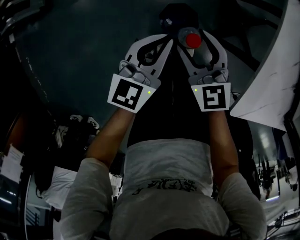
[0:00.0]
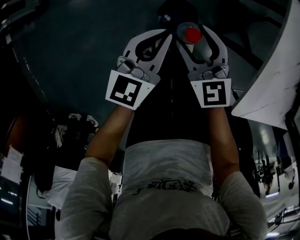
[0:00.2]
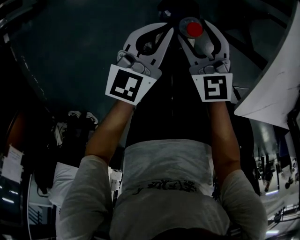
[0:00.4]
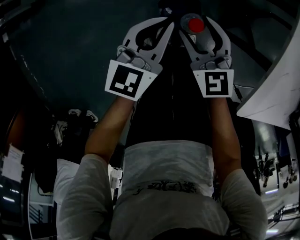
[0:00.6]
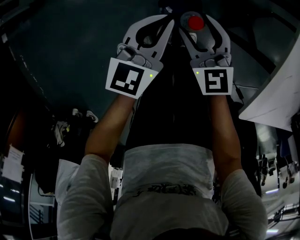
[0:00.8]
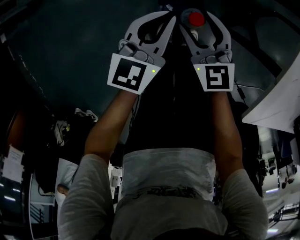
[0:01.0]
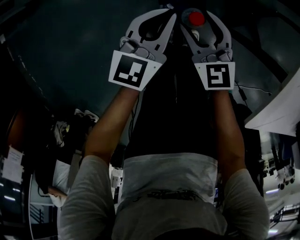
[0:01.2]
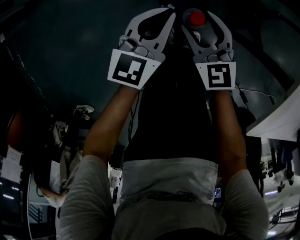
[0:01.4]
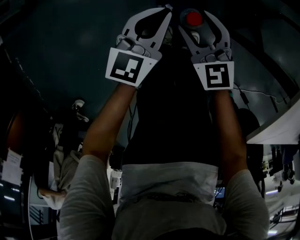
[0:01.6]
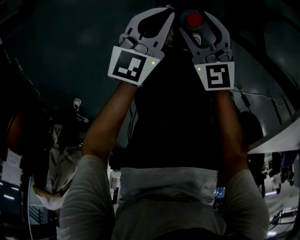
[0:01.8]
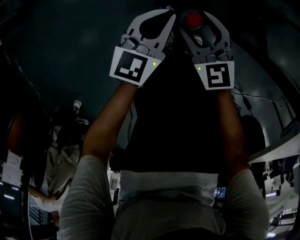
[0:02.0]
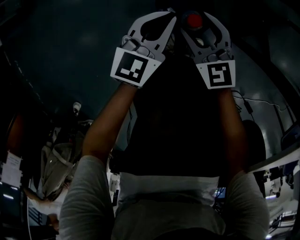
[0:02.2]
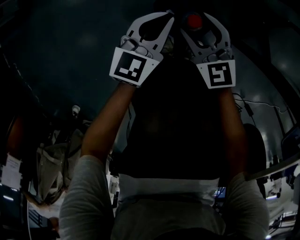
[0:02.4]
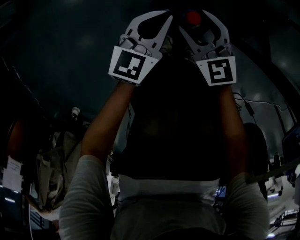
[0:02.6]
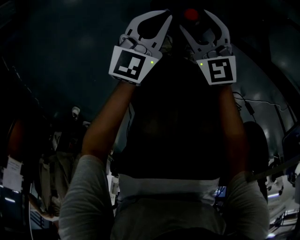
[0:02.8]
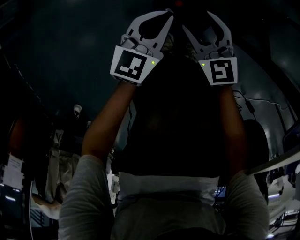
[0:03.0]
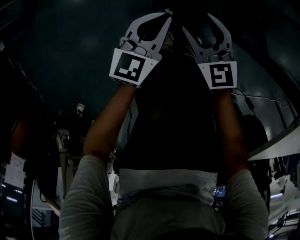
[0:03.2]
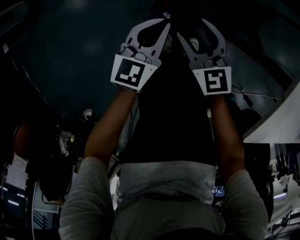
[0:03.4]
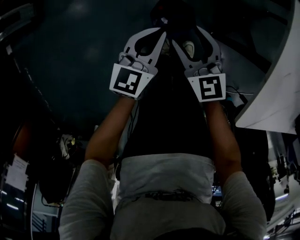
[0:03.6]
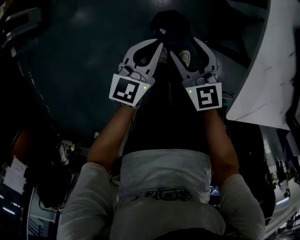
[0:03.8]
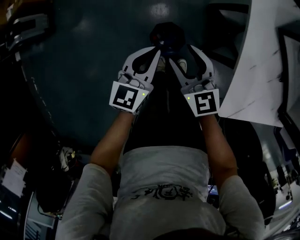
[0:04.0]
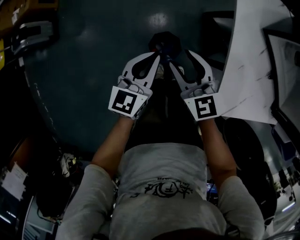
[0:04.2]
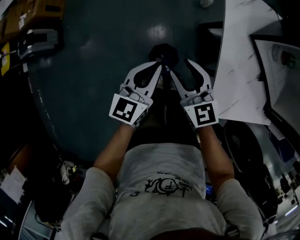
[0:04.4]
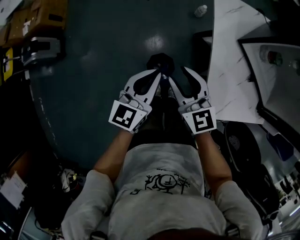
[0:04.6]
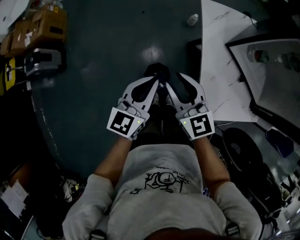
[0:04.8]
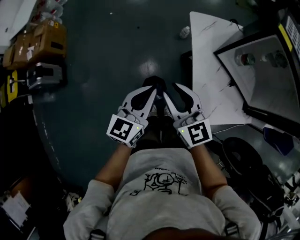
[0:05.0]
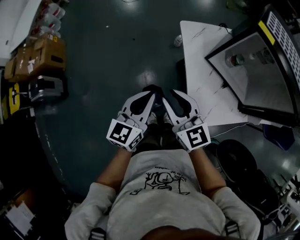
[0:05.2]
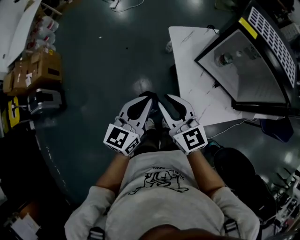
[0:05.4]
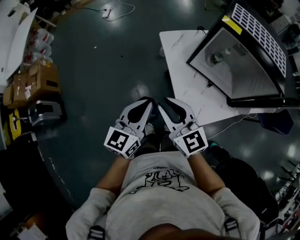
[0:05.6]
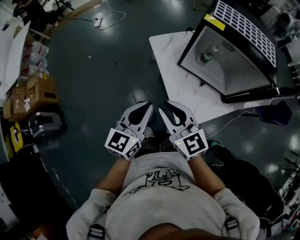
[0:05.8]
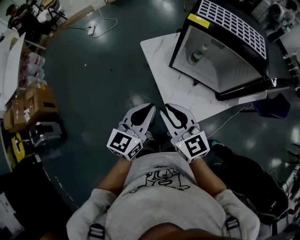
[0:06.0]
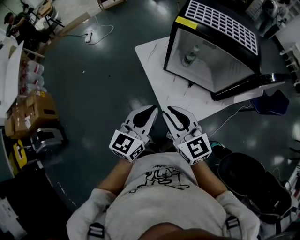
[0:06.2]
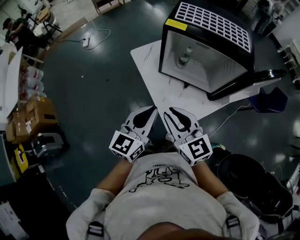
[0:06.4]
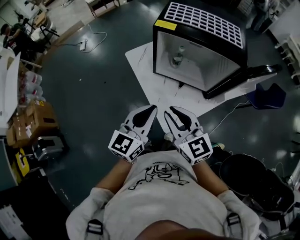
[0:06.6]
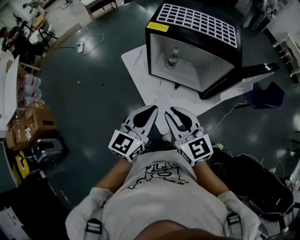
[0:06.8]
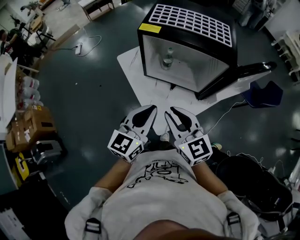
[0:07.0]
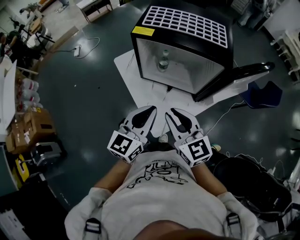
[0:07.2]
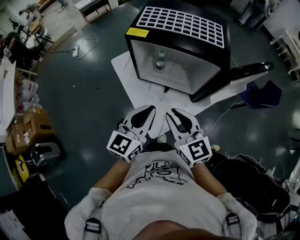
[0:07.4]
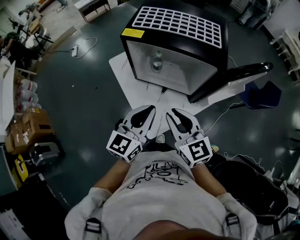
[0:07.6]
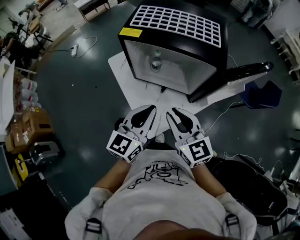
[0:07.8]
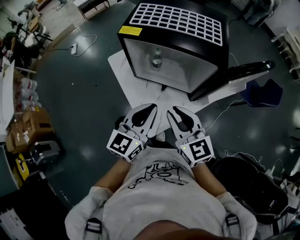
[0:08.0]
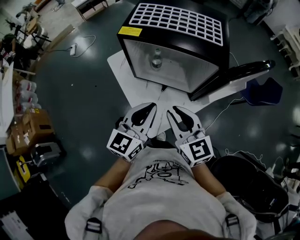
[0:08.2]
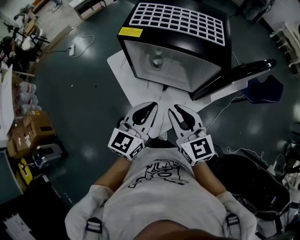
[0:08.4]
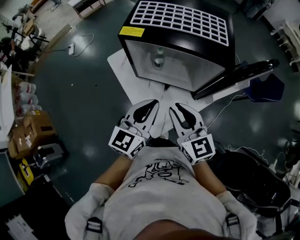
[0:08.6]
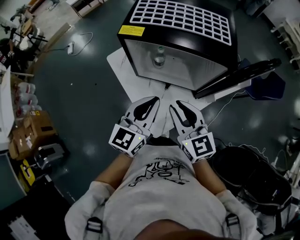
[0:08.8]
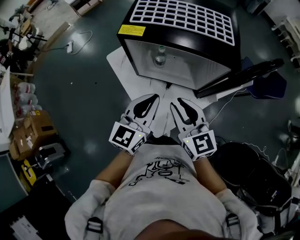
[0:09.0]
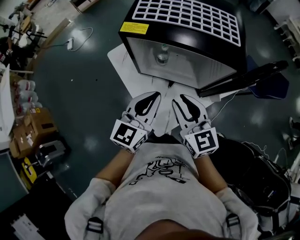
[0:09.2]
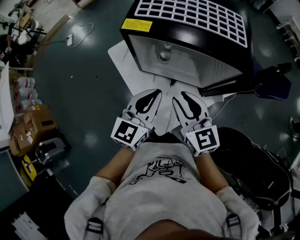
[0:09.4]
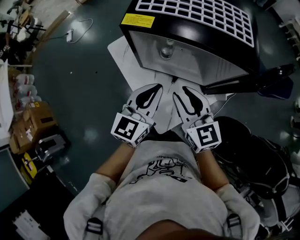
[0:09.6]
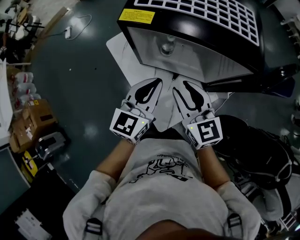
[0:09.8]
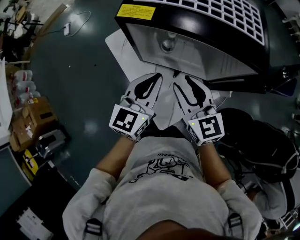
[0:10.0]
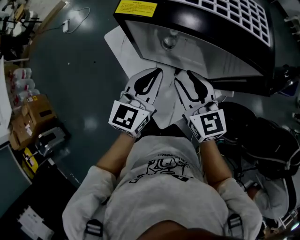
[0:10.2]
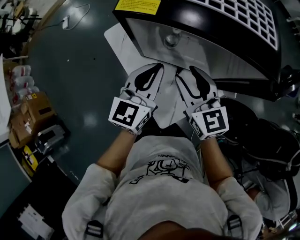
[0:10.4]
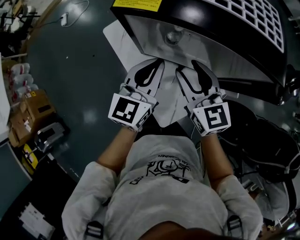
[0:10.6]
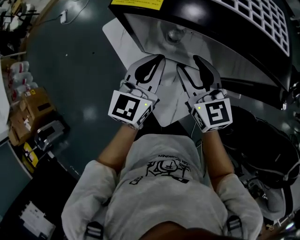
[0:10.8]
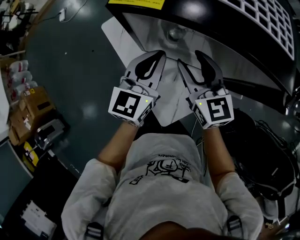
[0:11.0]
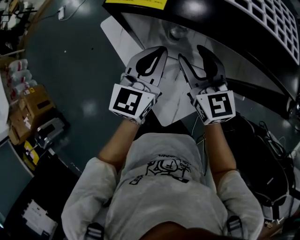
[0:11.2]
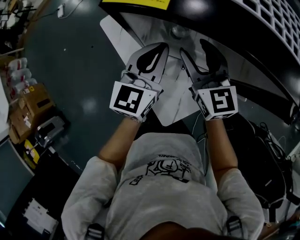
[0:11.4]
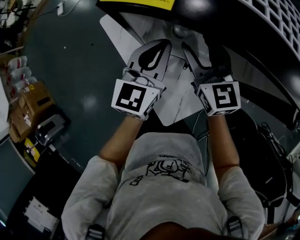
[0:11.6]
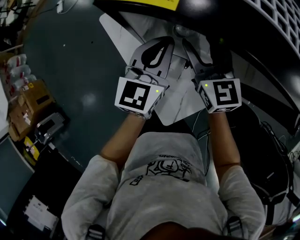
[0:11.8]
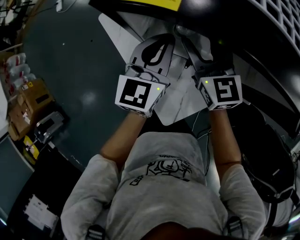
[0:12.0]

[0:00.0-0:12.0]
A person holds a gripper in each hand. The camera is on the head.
0:00.0 to 0:01.6: Both grippers move downward, some 20 cm.
0:01.6 to 0:03.0: Both grippers move downward, roughly 10 cm.
0:03.0 to 0:04.4: The grippers both shift upward by roughly 40 cm.
0:04.4 to 0:06.0: Both grippers travel together upward and to the right, roughly 30 cm. The right gripper closes its fingers. Meanwhile the left gripper rotates about 30 degrees.
0:06.0 to 0:07.6: Both grippers travel together to the right, roughly 20 cm.
0:07.6 to 0:09.0: Both grippers move forward, roughly 5 cm.
0:09.0 to 0:10.4: The grippers both shift forward and downward by roughly 10 cm.
0:10.4 to 0:12.0: Both grippers move forward and downward, approximately 15 cm.

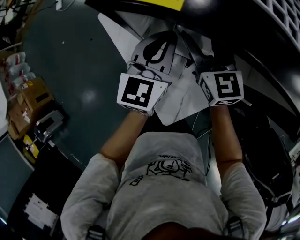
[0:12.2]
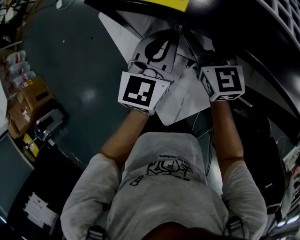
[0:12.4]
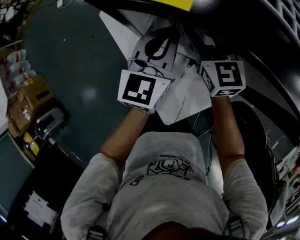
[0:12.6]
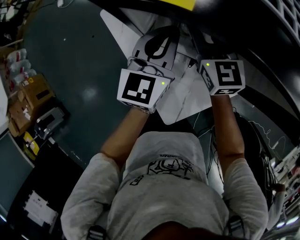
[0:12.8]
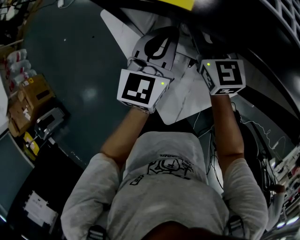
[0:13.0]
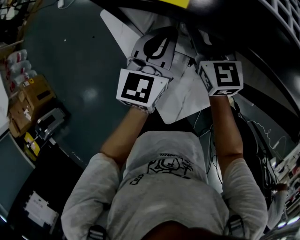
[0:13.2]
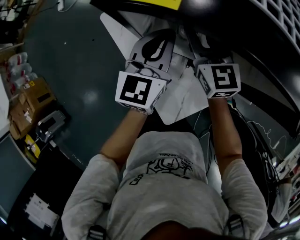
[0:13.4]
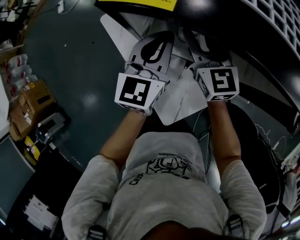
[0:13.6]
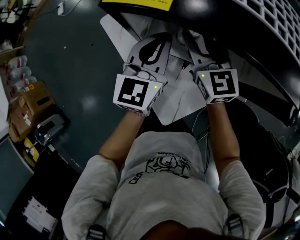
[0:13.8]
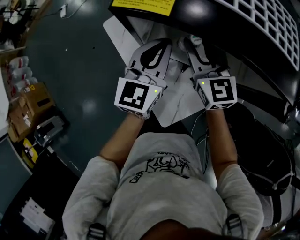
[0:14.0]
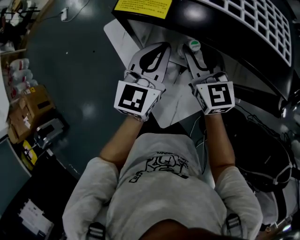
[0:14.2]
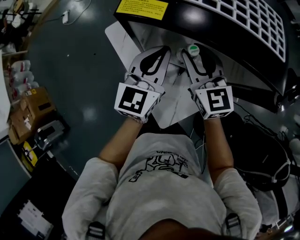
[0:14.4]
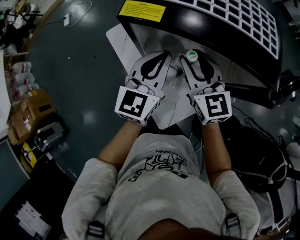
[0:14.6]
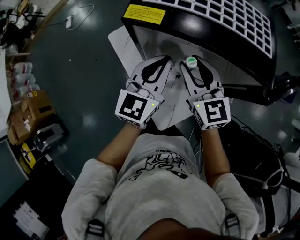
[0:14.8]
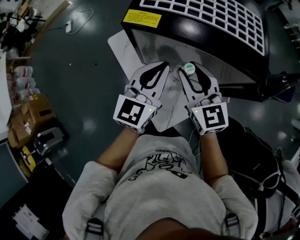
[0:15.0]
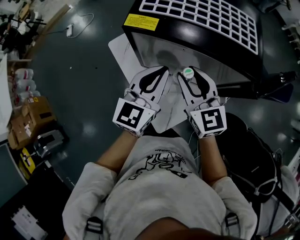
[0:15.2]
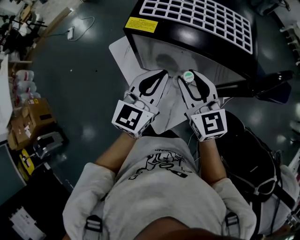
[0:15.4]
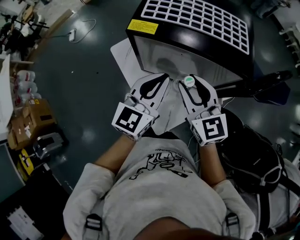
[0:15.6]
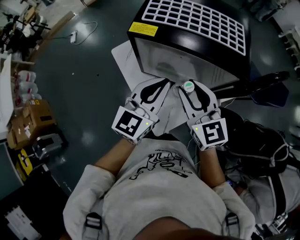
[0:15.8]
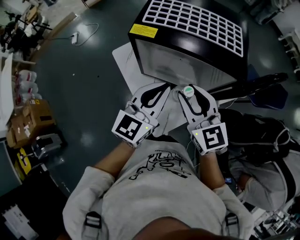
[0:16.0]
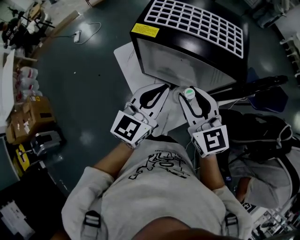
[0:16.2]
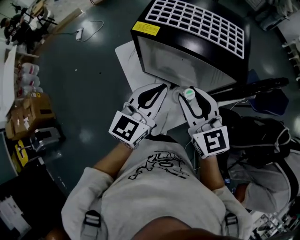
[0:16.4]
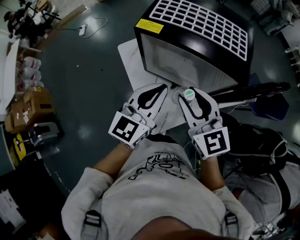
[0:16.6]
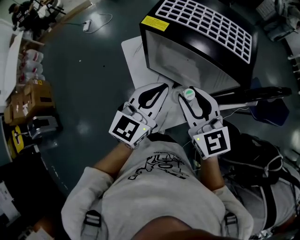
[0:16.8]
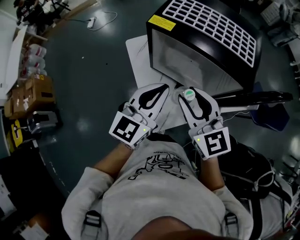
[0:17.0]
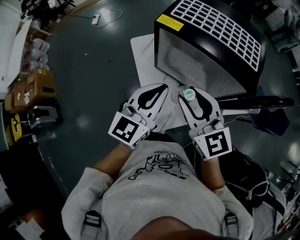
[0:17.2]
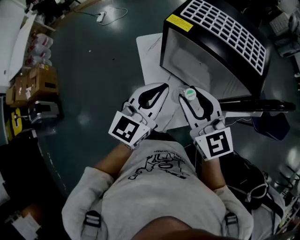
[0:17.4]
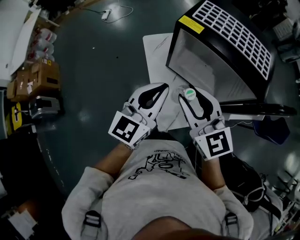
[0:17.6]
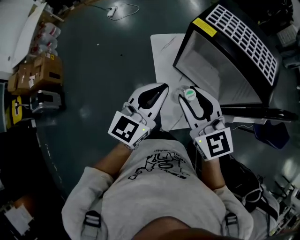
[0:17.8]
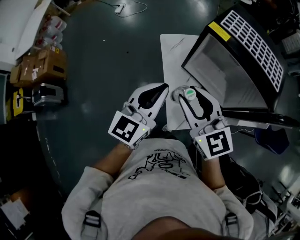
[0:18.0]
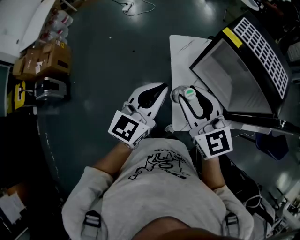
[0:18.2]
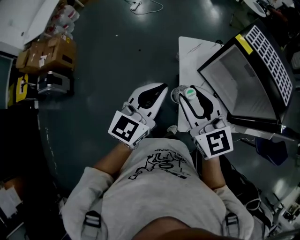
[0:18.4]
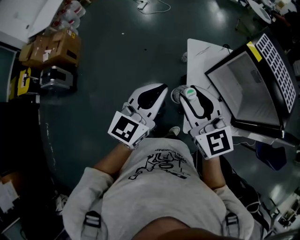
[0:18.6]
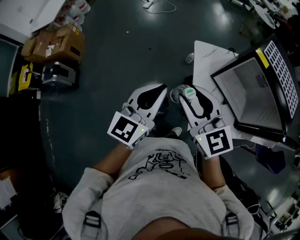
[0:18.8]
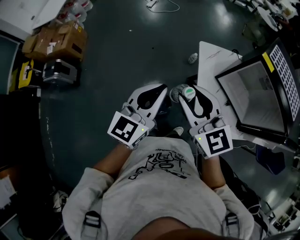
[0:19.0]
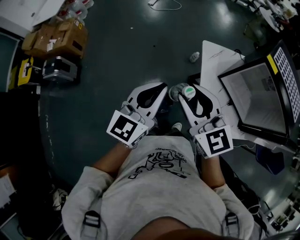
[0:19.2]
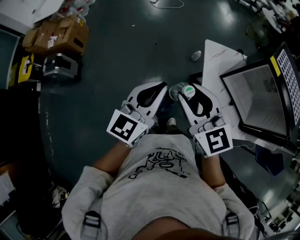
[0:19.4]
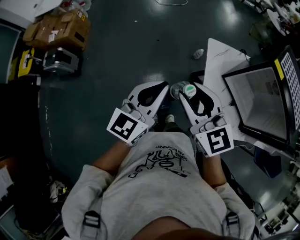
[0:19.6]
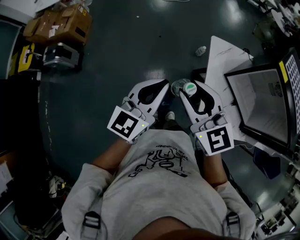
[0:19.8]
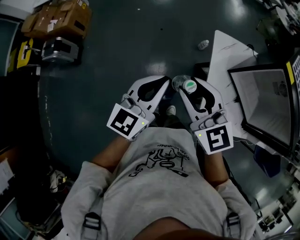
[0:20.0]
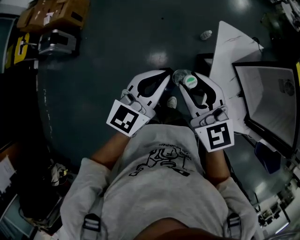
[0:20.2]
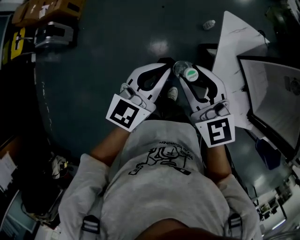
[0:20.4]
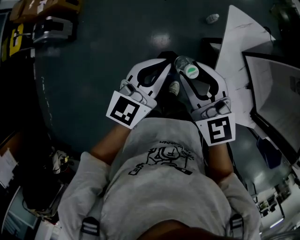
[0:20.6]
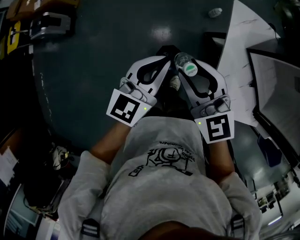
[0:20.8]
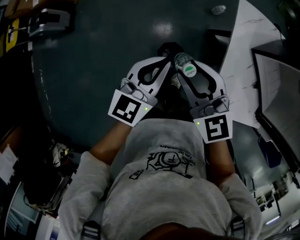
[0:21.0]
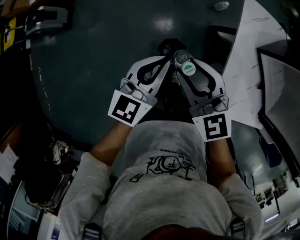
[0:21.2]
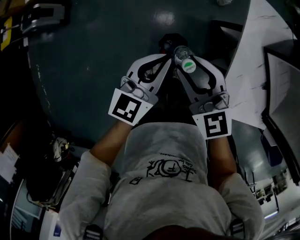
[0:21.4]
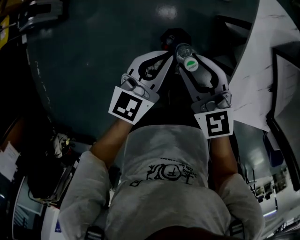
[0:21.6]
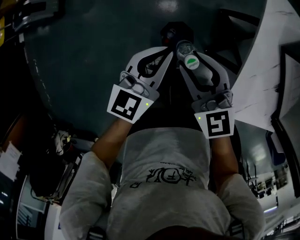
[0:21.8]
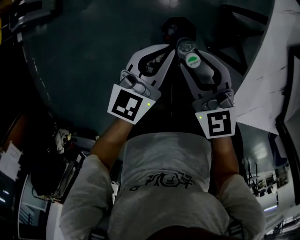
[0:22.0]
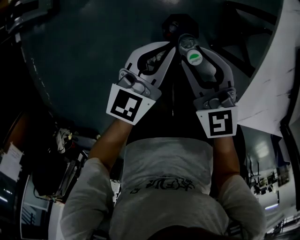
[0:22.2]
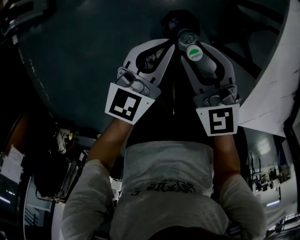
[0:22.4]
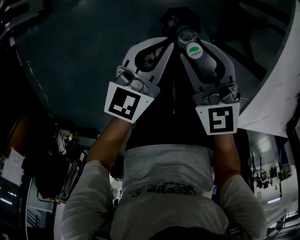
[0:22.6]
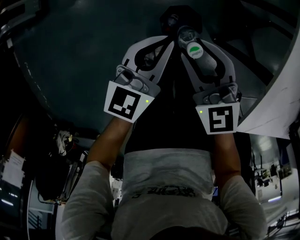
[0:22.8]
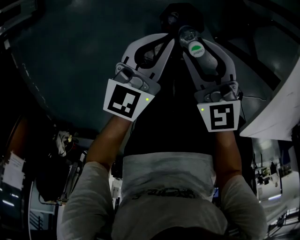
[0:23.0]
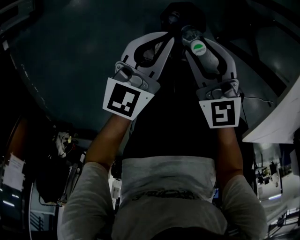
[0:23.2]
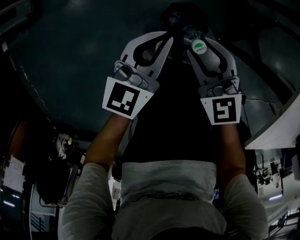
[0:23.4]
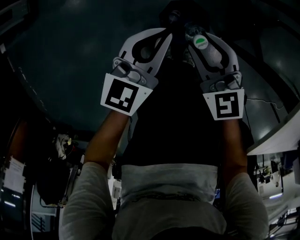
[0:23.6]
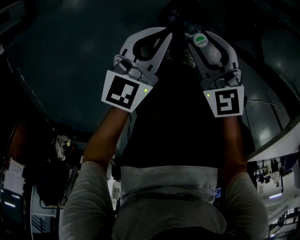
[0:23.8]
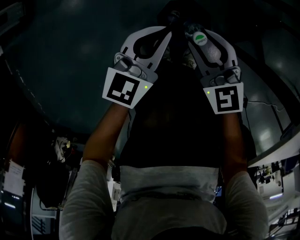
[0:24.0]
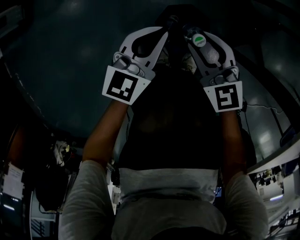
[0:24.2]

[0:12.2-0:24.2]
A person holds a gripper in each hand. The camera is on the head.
0:12.2 to 0:13.8: The right gripper closes its fingers.
0:13.8 to 0:15.2: The right gripper is displaced backward and upward by approximately 15 cm. The left gripper is displaced upward and backward by some 15 cm.
0:15.2 to 0:16.6: The right gripper is displaced backward and upward by about 10 cm. The left gripper travels backward by approximately 10 cm.
0:16.6 to 0:18.2: Both grippers travel together to the left, some 20 cm. The right gripper swivels approximately 20 degrees. The left gripper turns by approximately 20 degrees.
0:18.2 to 0:19.8: The two grippers go approximately 20 cm to the left.
0:19.8 to 0:21.2: Both grippers move downward, approximately 20 cm.
0:21.2 to 0:22.6: The two grippers go some 25 cm downward.
0:22.6 to 0:24.2: Both grippers move downward, some 25 cm.
